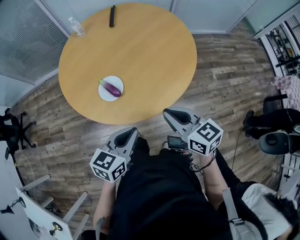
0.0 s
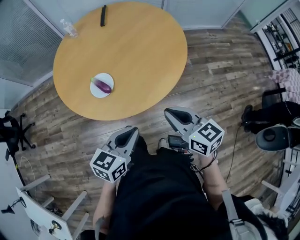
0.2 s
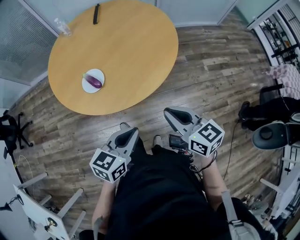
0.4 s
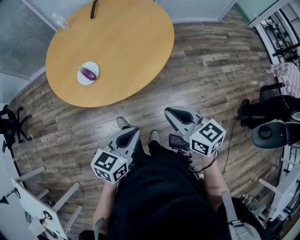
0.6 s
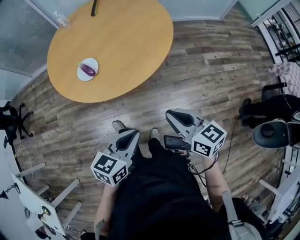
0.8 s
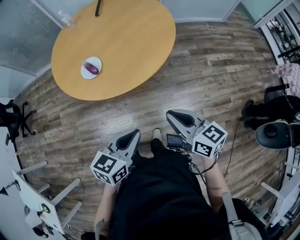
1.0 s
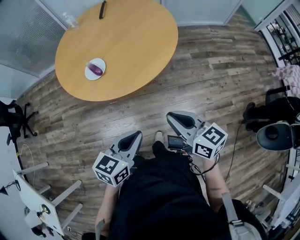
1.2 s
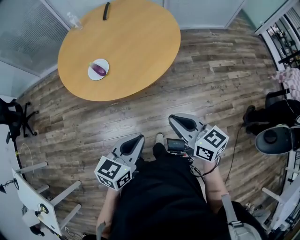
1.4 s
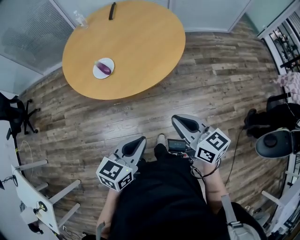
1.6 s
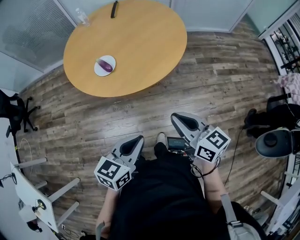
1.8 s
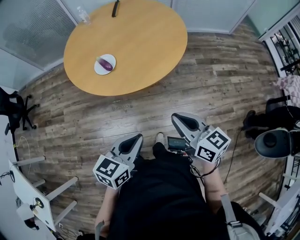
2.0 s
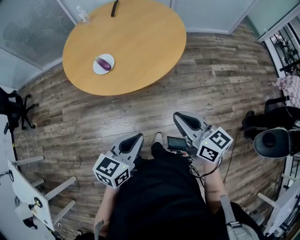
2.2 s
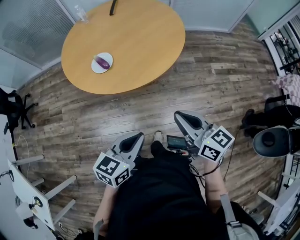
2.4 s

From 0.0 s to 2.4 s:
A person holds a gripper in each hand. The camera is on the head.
From 0.0 s to 1.2 s: Both grippers move backward and to the right, some 20 cm.
From 1.2 s to 2.4 s: There are only small adjustments of the grippers.

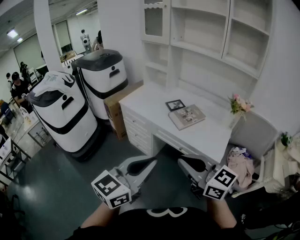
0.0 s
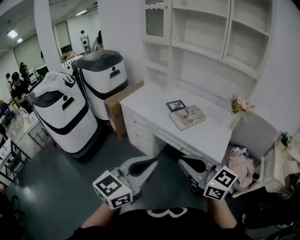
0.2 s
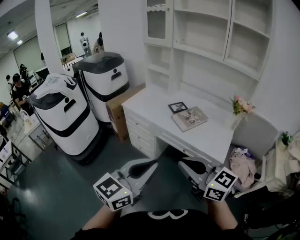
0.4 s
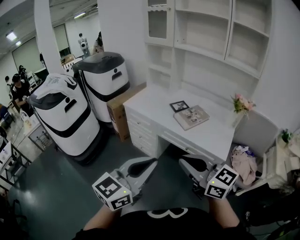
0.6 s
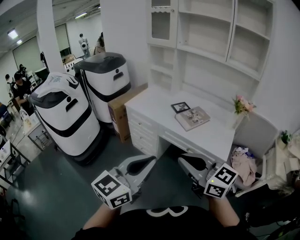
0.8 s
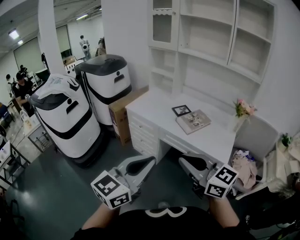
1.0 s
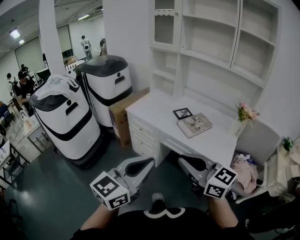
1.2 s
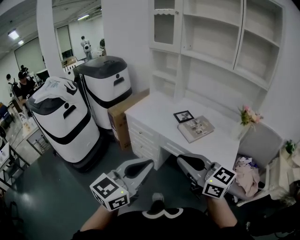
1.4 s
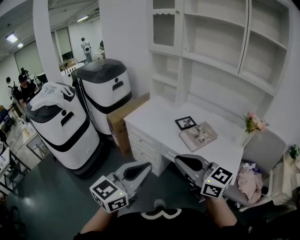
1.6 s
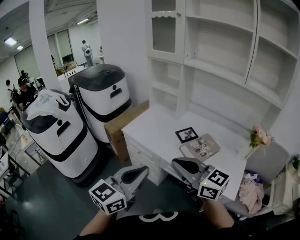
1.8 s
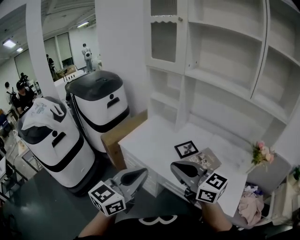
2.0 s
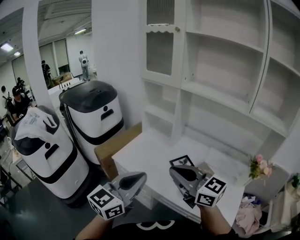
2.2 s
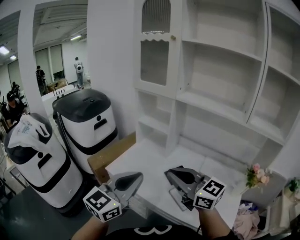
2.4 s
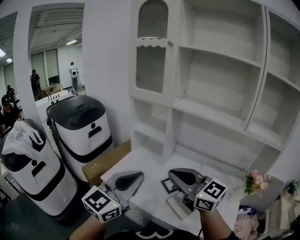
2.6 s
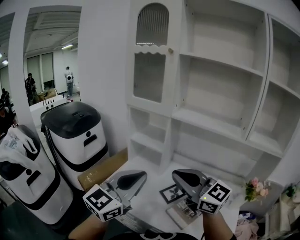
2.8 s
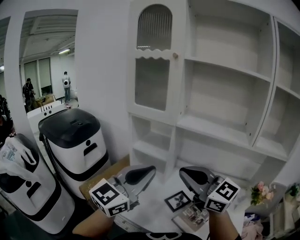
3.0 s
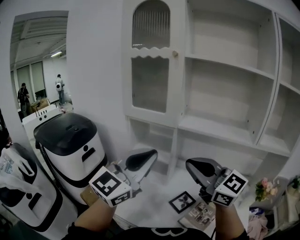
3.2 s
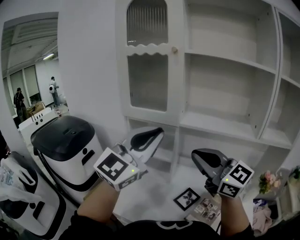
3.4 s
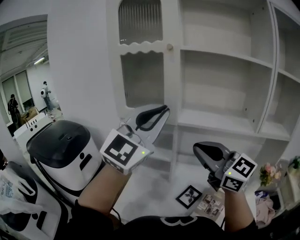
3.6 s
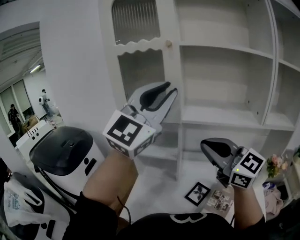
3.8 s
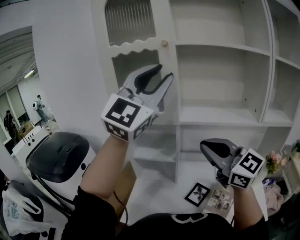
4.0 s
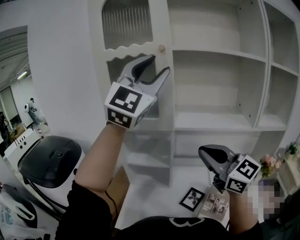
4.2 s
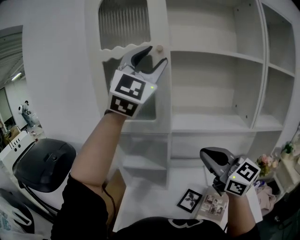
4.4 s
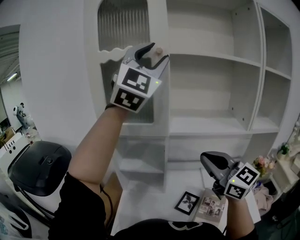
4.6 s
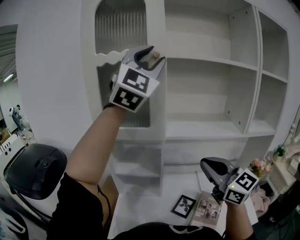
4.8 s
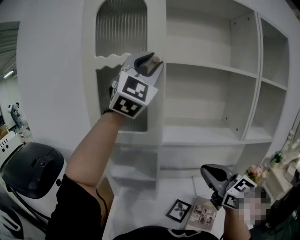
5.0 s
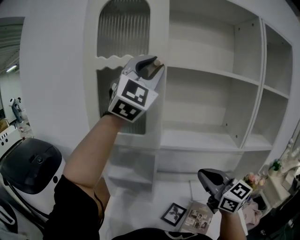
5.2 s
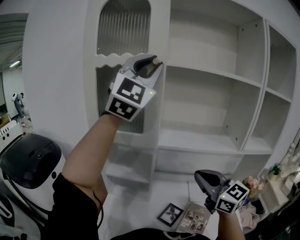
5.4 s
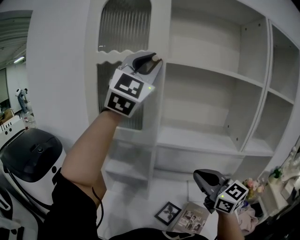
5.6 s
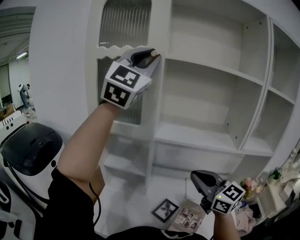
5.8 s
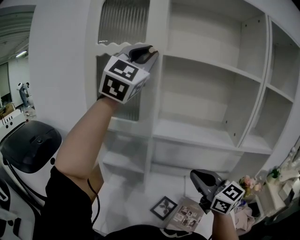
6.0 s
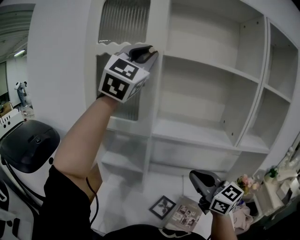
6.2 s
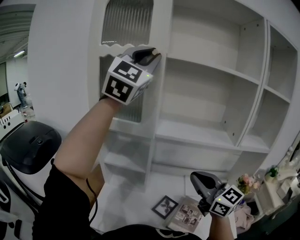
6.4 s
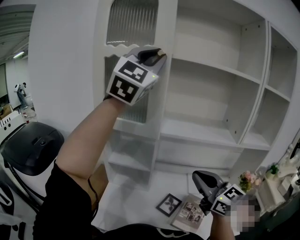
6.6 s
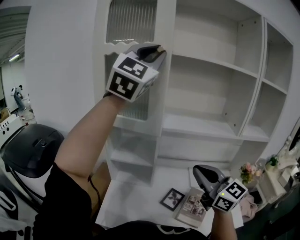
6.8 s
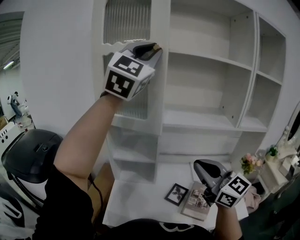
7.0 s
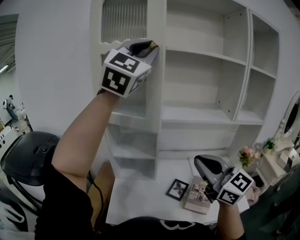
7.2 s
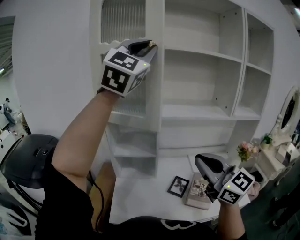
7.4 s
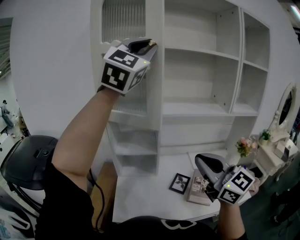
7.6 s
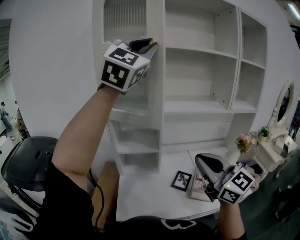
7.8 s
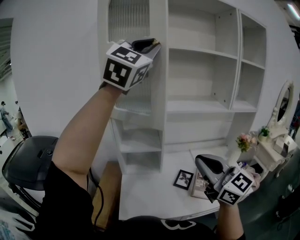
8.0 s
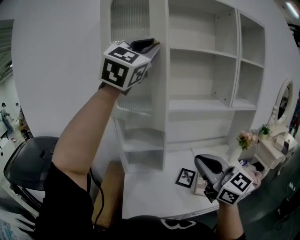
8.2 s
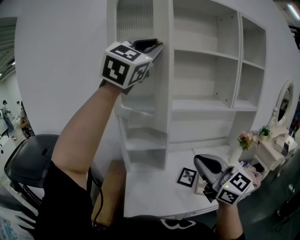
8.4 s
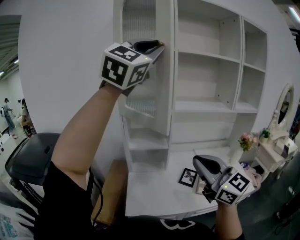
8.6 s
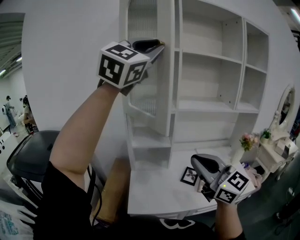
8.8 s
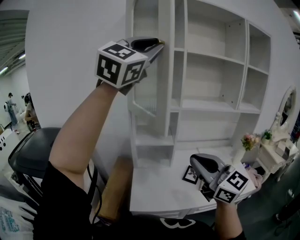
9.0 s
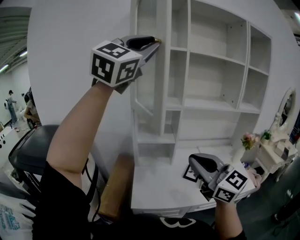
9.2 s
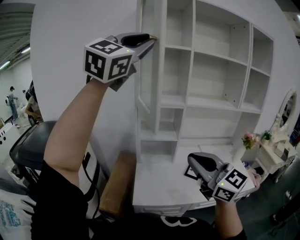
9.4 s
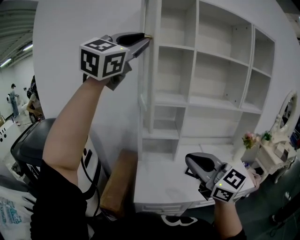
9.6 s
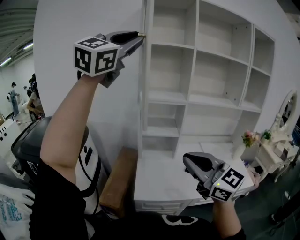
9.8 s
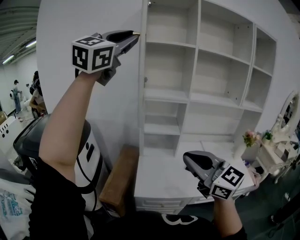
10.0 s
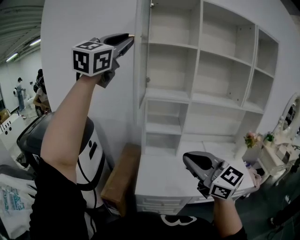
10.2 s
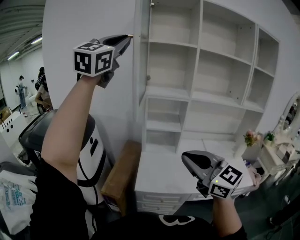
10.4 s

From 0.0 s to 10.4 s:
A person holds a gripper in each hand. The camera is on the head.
From 0.0 s to 1.4 s: The grippers both shift to the left and forward by approximately 10 cm.
From 1.4 s to 3.0 s: The two grippers travel together, forward, roughly 50 cm. The left gripper rotates roughly 20 degrees. The right gripper swivels approximately 20 degrees.
From 3.0 s to 4.4 s: The left gripper moves upward and forward, about 40 cm, twists about 40 degrees clockwise, seen from behind, and opens up; the right gripper goes approximately 10 cm forward, and swivels approximately 30 degrees.
From 4.4 s to 6.0 s: The right gripper travels to the right and downward by some 10 cm. Meanwhile the left gripper closes up.
From 6.0 s to 7.4 s: The left gripper travels backward by approximately 10 cm. The right gripper travels backward and to the left by approximately 15 cm.
From 7.4 s to 9.0 s: The right gripper shifts about 20 cm to the left and backward; the left gripper is displaced backward and to the left by roughly 20 cm.
From 9.0 s to 10.4 s: The right gripper shifts about 10 cm backward and to the left, while the left gripper moves to the left, some 15 cm.

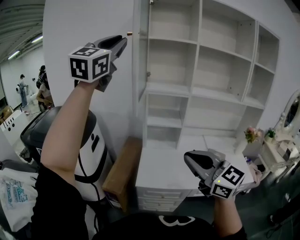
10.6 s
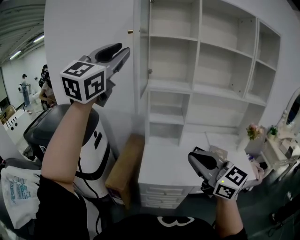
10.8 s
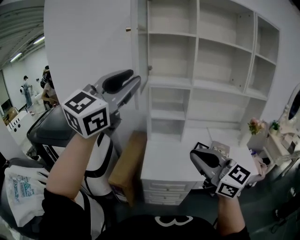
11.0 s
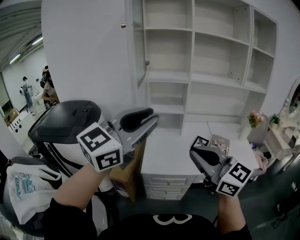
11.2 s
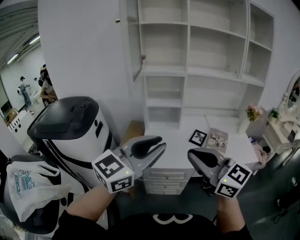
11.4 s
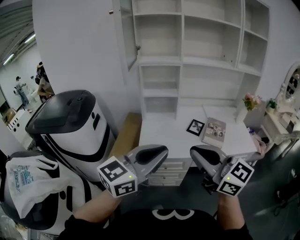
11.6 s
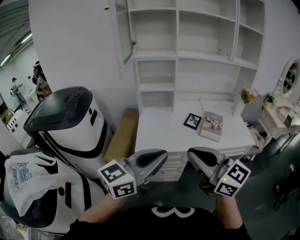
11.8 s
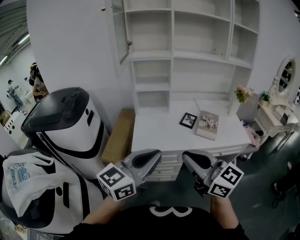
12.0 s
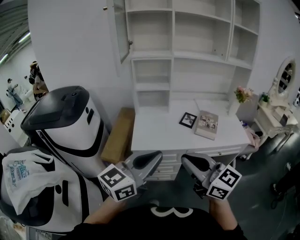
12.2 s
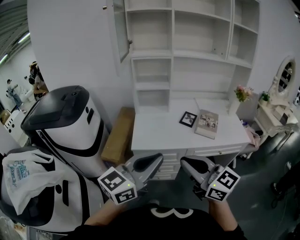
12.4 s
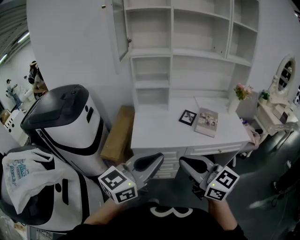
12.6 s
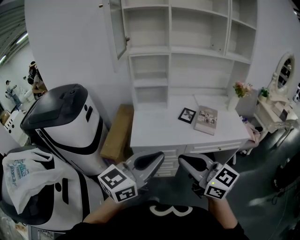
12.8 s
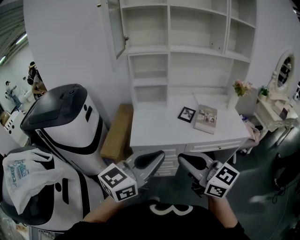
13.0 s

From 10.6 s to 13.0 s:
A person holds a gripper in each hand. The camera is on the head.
From 10.6 s to 11.8 s: The left gripper goes about 50 cm downward, backward and to the right, and rolls counterclockwise, seen from behind, by approximately 50 degrees, while the right gripper heads backward and downward, covering approximately 15 cm.
From 11.8 s to 13.0 s: The right gripper goes approximately 5 cm downward.

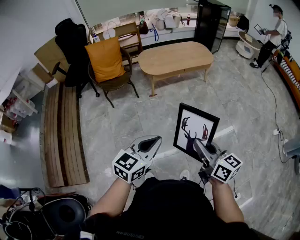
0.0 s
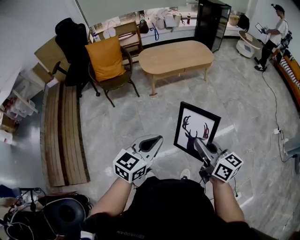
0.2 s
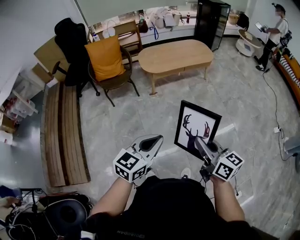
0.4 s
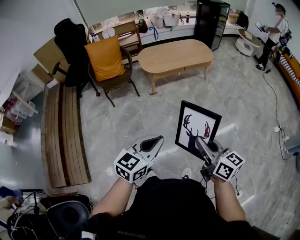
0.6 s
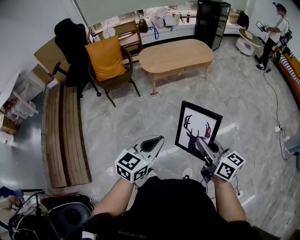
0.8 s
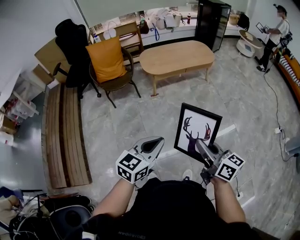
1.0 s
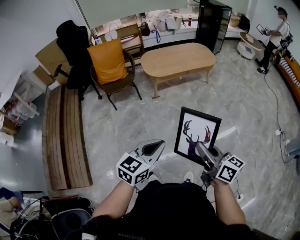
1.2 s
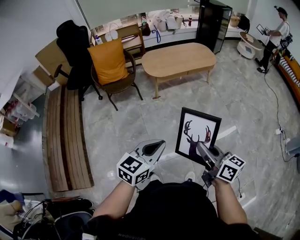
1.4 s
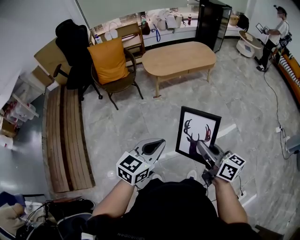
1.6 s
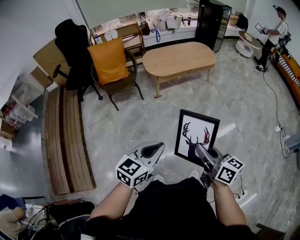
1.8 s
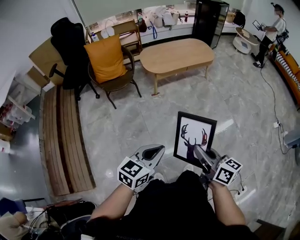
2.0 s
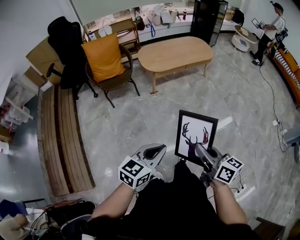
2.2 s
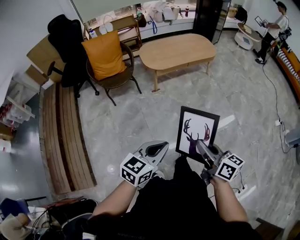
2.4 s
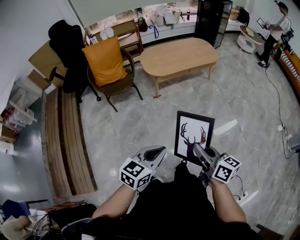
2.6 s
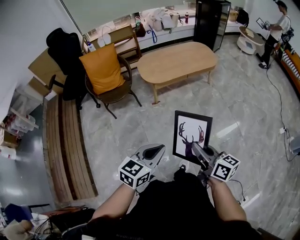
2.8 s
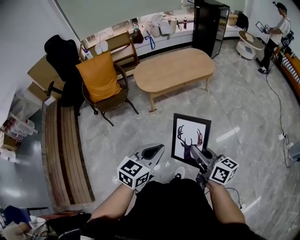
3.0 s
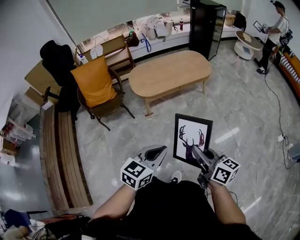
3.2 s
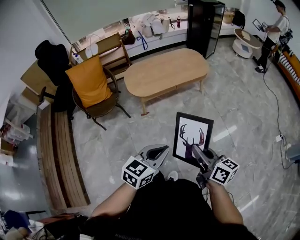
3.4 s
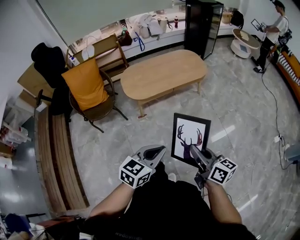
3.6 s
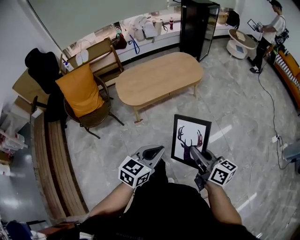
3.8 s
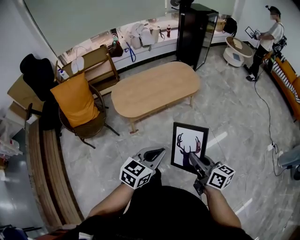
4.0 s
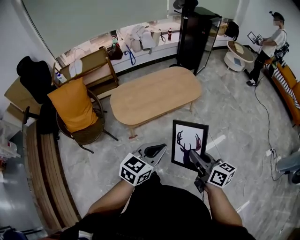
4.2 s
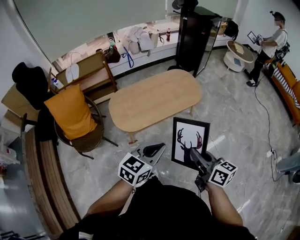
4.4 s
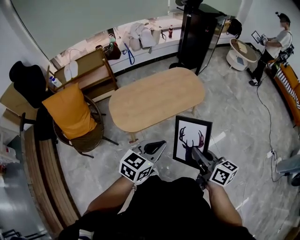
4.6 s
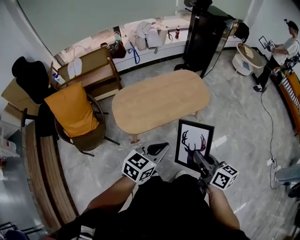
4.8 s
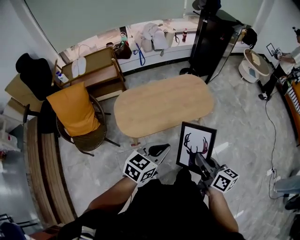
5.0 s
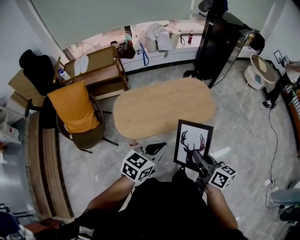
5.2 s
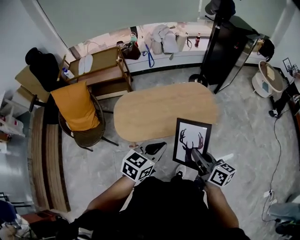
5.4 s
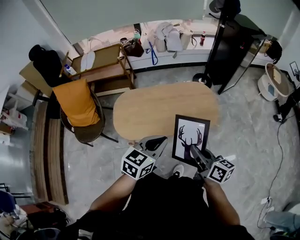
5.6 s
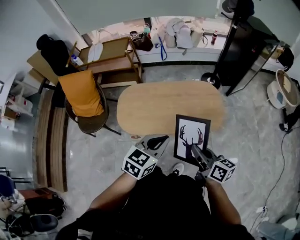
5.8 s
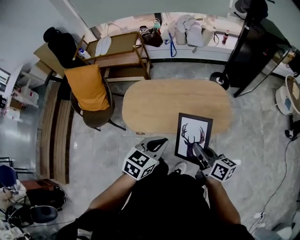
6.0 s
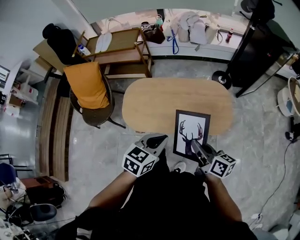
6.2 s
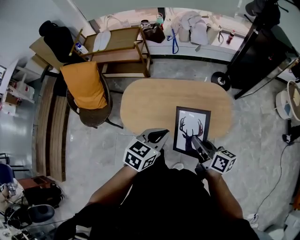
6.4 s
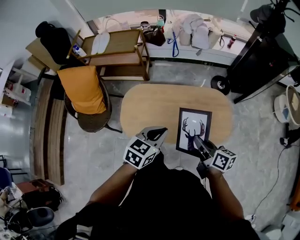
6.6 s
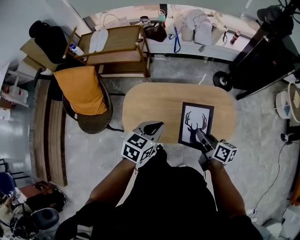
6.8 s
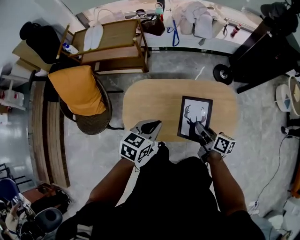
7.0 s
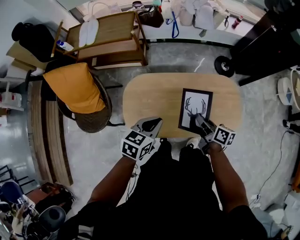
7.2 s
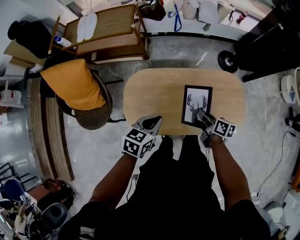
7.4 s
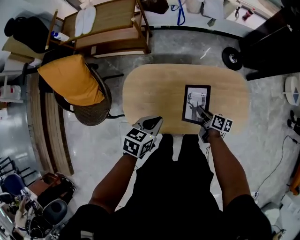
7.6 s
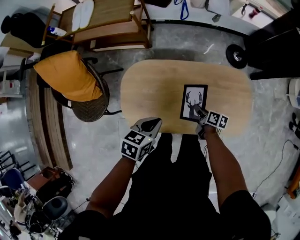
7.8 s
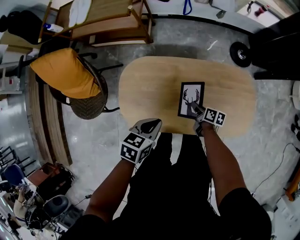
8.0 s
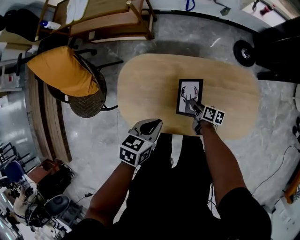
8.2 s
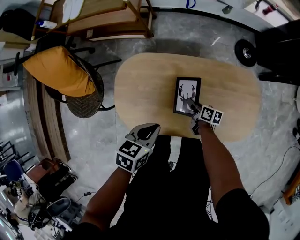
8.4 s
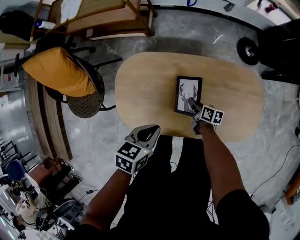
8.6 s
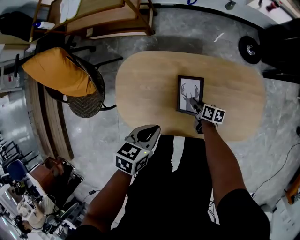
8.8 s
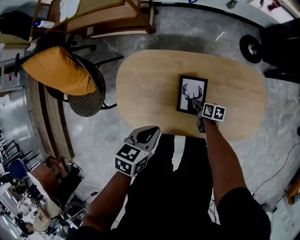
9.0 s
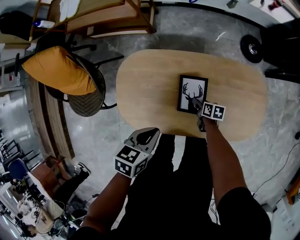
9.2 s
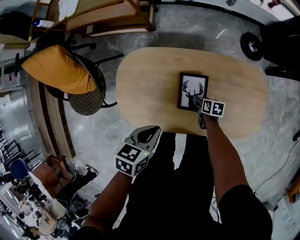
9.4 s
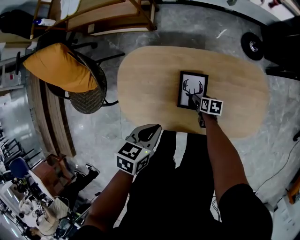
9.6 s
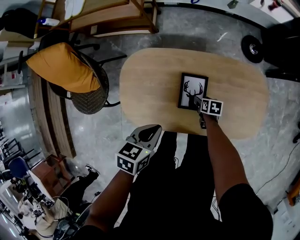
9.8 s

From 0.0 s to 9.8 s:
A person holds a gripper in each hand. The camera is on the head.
From 0.0 s to 1.4 s: There are only small adjustments of the grippers.
From 1.4 s to 2.8 s: The grippers both shift forward by some 15 cm.
From 2.8 s to 4.2 s: Both grippers move forward, about 40 cm.
From 4.2 s to 5.6 s: The grippers both shift forward by approximately 40 cm. The left gripper turns by about 20 degrees.
From 5.6 s to 7.0 s: The right gripper shifts roughly 30 cm forward and downward. Meanwhile the left gripper shifts roughly 30 cm forward, to the left and downward.
From 7.0 s to 8.4 s: The left gripper goes about 15 cm downward, and turns by about 20 degrees; the right gripper shifts roughly 35 cm downward, and changes its angle by about 20 degrees.
From 8.4 s to 9.8 s: The right gripper travels downward by roughly 5 cm, swivels approximately 30 degrees, and opens up.
